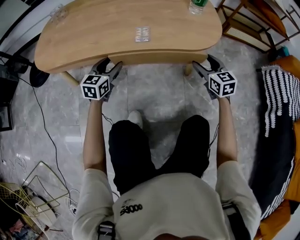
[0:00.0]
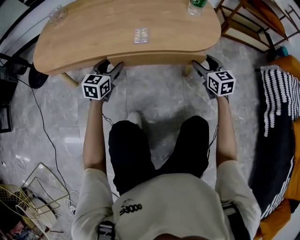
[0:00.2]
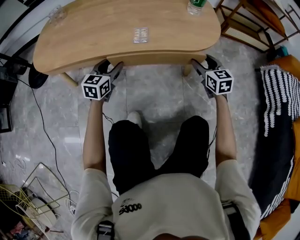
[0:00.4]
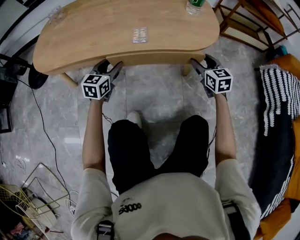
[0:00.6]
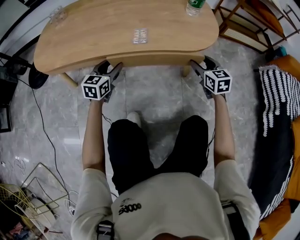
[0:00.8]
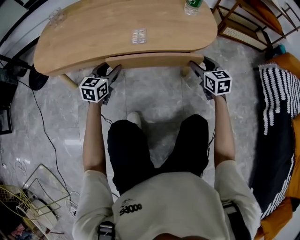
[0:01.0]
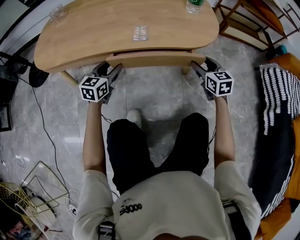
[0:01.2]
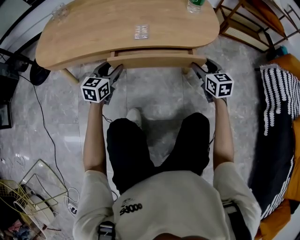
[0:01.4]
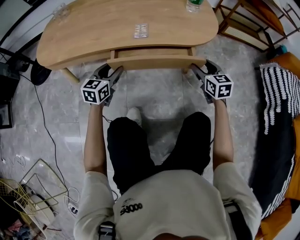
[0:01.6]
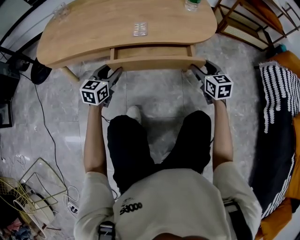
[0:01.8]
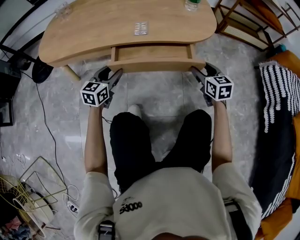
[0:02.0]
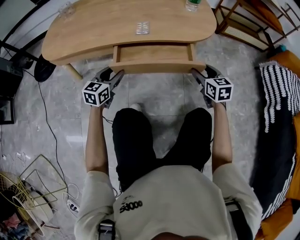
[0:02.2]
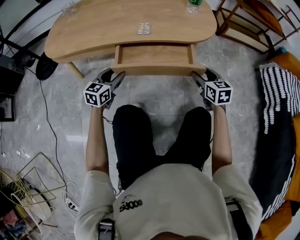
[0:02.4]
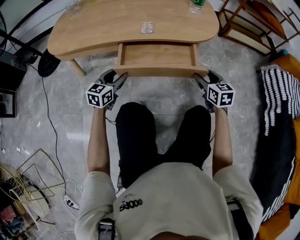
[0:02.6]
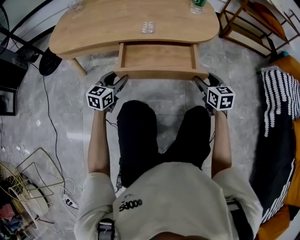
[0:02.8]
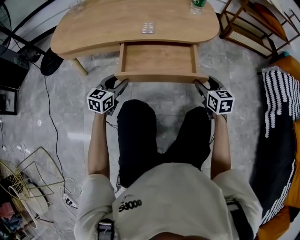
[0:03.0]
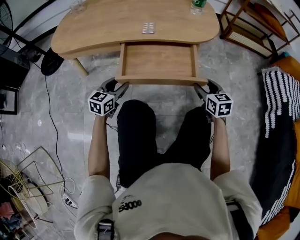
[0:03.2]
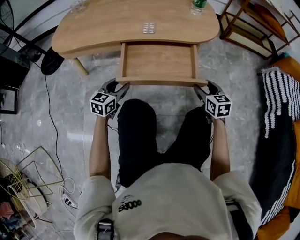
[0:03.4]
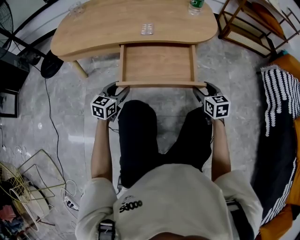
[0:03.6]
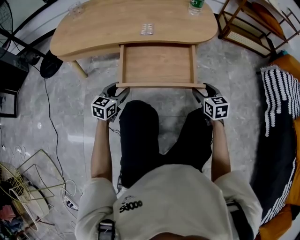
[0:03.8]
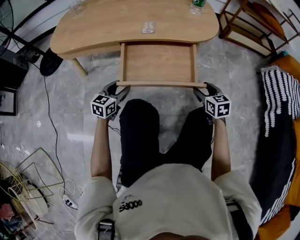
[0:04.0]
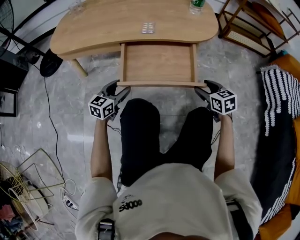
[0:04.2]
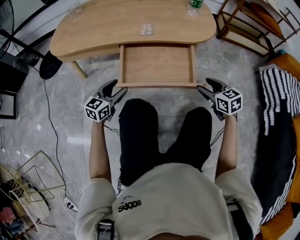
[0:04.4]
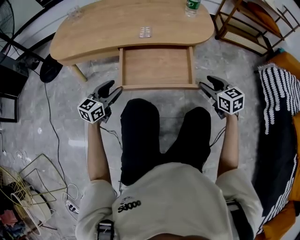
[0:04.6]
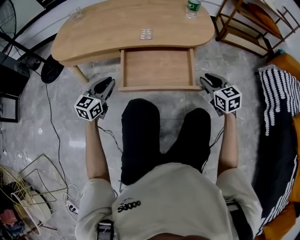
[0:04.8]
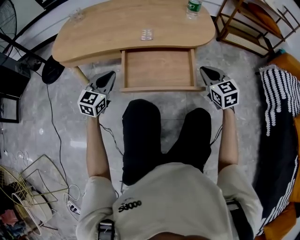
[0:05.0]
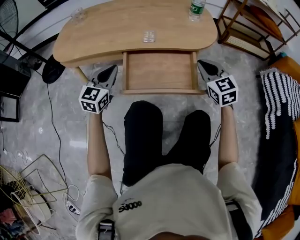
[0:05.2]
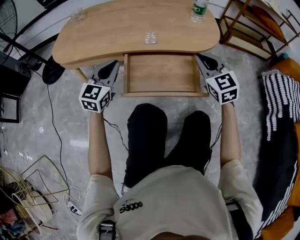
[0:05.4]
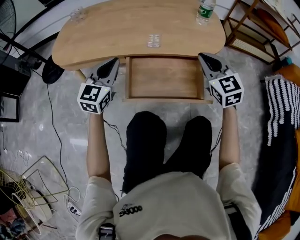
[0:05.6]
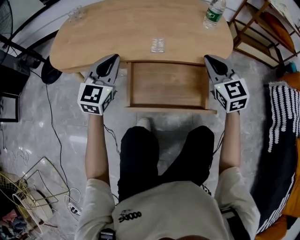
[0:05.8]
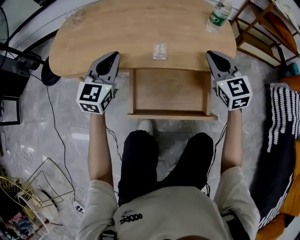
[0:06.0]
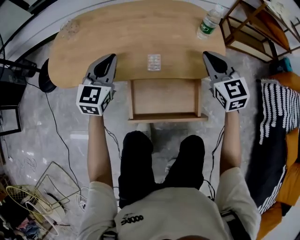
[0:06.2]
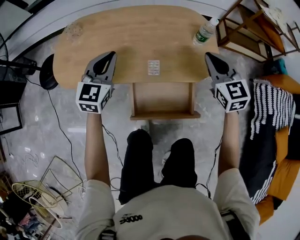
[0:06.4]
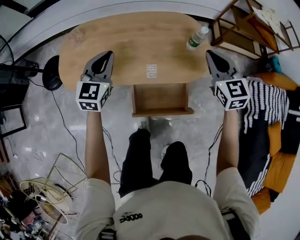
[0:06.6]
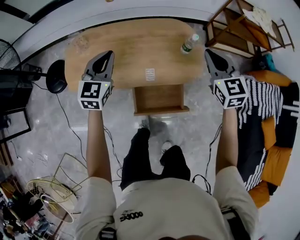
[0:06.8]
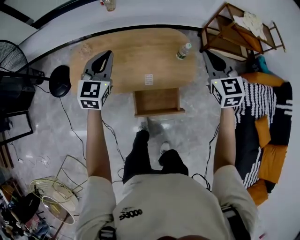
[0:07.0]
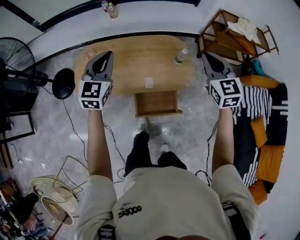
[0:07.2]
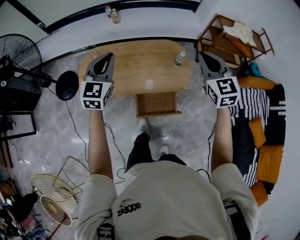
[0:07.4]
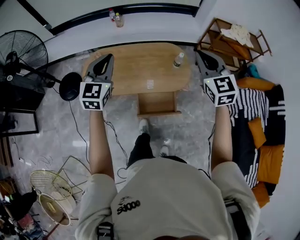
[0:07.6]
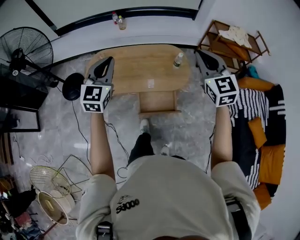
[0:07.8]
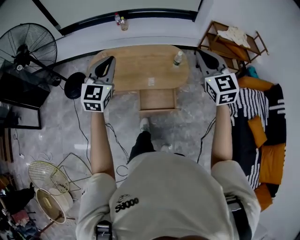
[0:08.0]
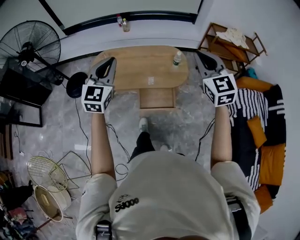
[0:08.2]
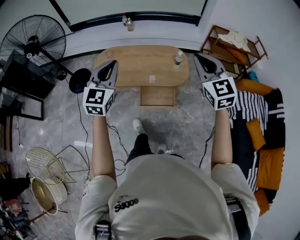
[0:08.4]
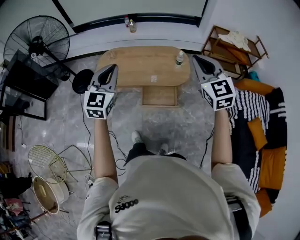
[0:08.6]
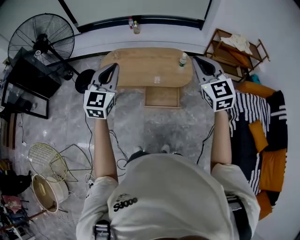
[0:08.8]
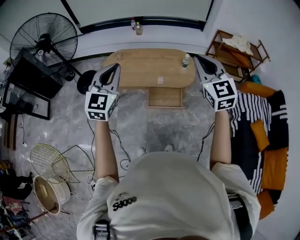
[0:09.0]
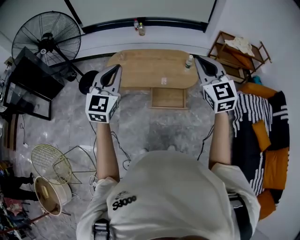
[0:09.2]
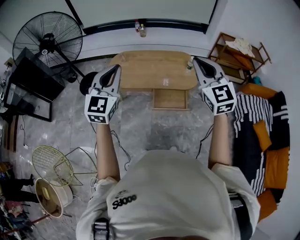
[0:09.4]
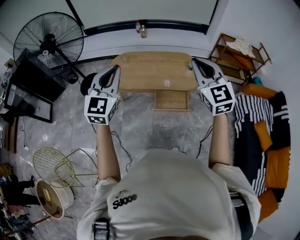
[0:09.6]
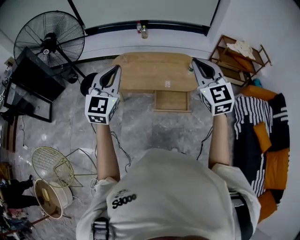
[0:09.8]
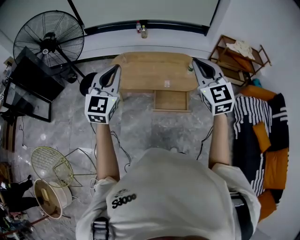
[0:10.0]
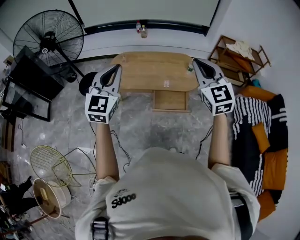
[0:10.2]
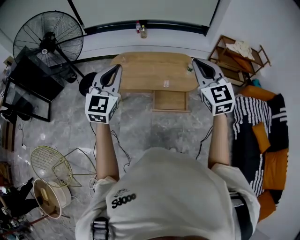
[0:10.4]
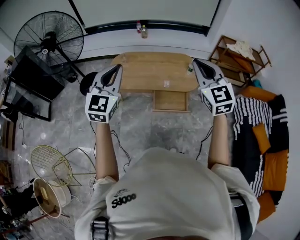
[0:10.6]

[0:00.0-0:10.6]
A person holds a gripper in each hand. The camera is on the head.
0:00.0 to 0:01.6: The grippers move only a little.
0:01.6 to 0:03.0: The grippers both shift backward by approximately 10 cm.
0:03.0 to 0:04.6: The grippers make only small movements.
0:04.6 to 0:06.0: The left gripper is displaced forward and upward by approximately 25 cm, rotates approximately 30 degrees, and closes its fingers. The right gripper travels forward, upward and to the left by some 25 cm, turns by approximately 30 degrees, and closes.
0:06.0 to 0:07.6: Both grippers move upward, some 60 cm.
0:07.6 to 0:09.0: The right gripper is displaced backward and upward by roughly 25 cm; the left gripper shifts about 30 cm backward.
0:09.0 to 0:10.6: The two grippers go some 5 cm to the left.

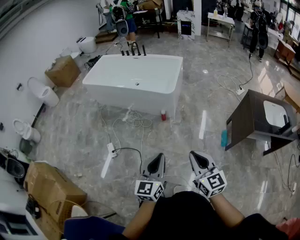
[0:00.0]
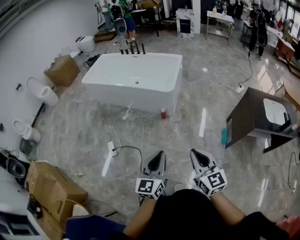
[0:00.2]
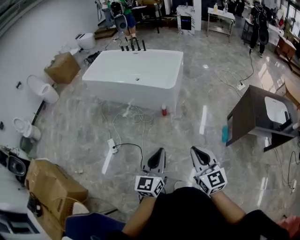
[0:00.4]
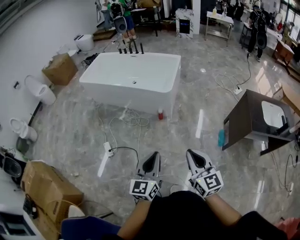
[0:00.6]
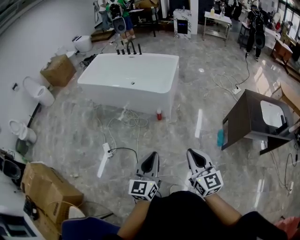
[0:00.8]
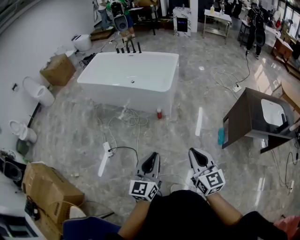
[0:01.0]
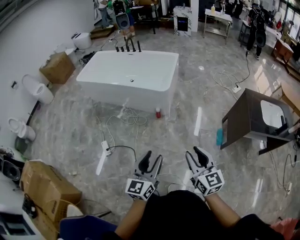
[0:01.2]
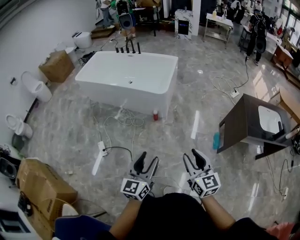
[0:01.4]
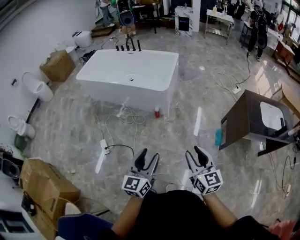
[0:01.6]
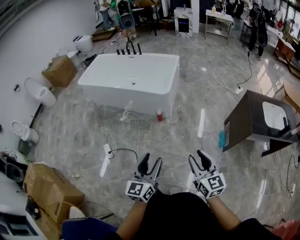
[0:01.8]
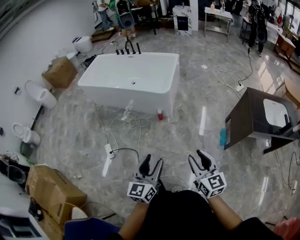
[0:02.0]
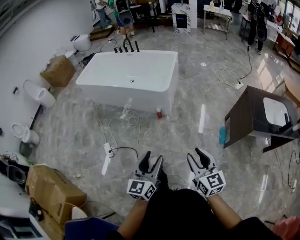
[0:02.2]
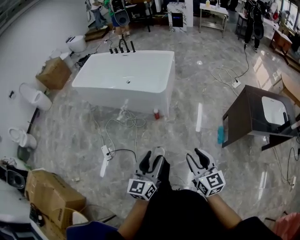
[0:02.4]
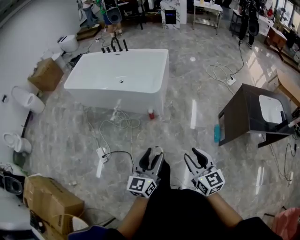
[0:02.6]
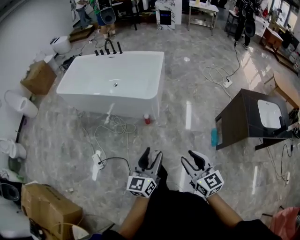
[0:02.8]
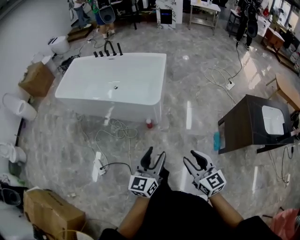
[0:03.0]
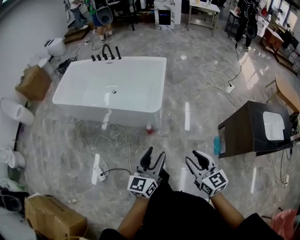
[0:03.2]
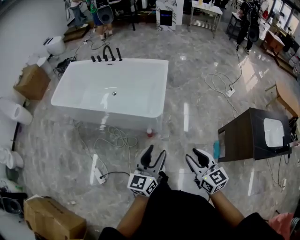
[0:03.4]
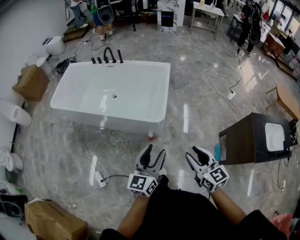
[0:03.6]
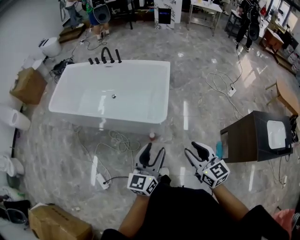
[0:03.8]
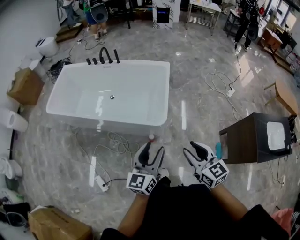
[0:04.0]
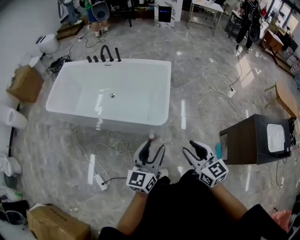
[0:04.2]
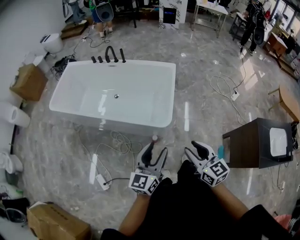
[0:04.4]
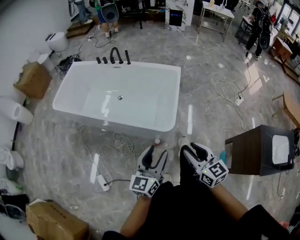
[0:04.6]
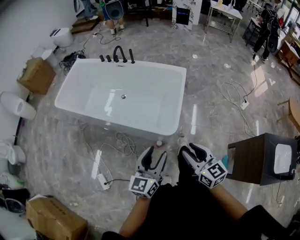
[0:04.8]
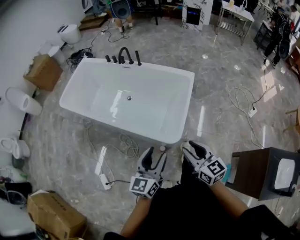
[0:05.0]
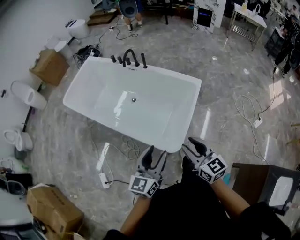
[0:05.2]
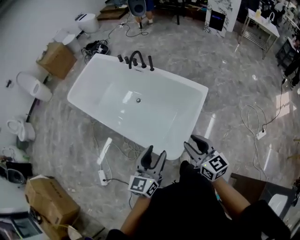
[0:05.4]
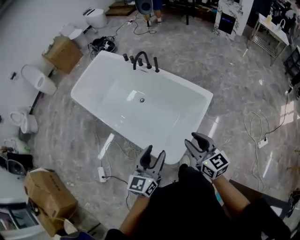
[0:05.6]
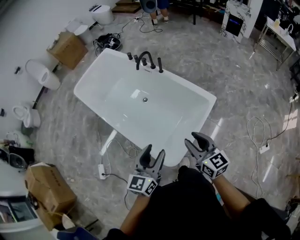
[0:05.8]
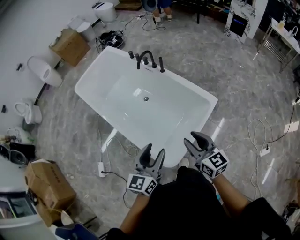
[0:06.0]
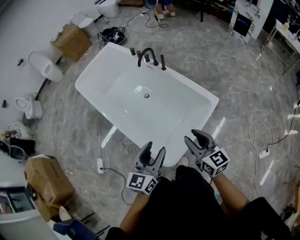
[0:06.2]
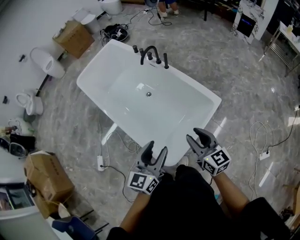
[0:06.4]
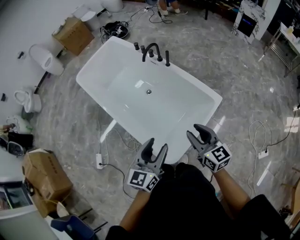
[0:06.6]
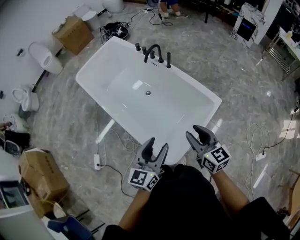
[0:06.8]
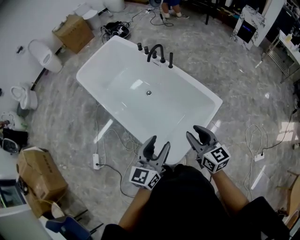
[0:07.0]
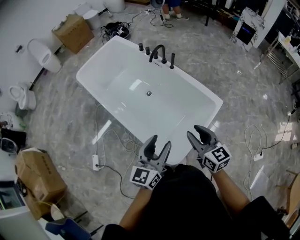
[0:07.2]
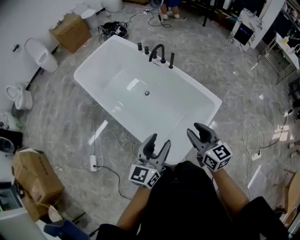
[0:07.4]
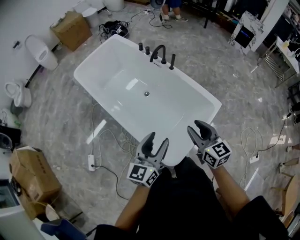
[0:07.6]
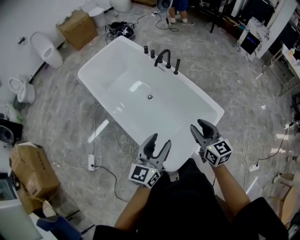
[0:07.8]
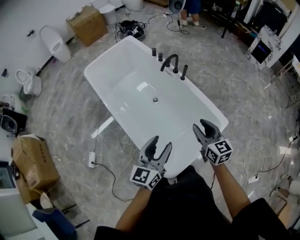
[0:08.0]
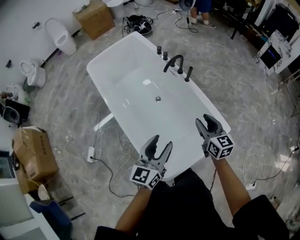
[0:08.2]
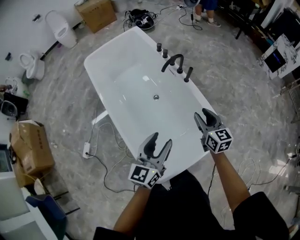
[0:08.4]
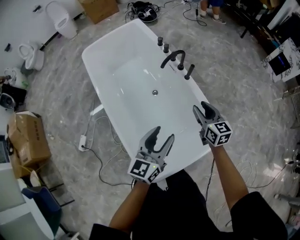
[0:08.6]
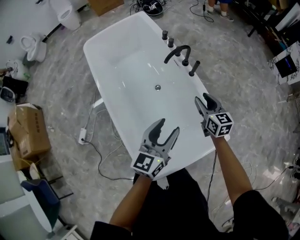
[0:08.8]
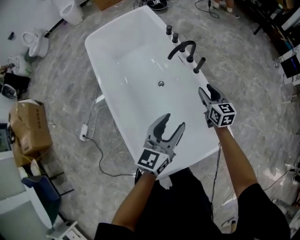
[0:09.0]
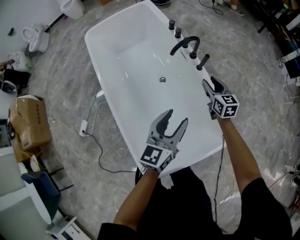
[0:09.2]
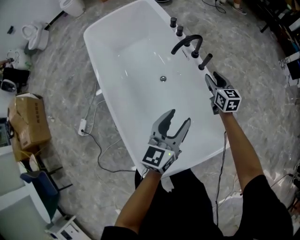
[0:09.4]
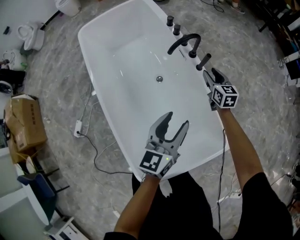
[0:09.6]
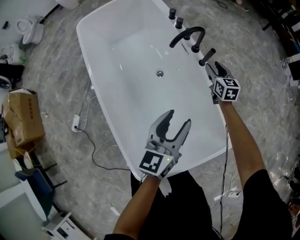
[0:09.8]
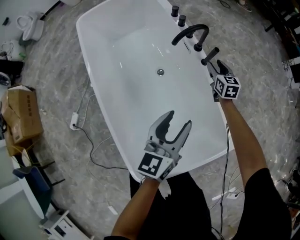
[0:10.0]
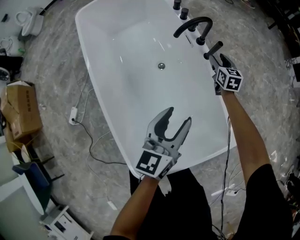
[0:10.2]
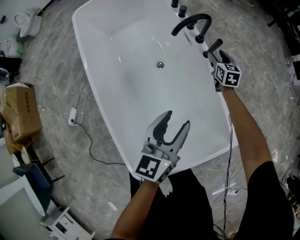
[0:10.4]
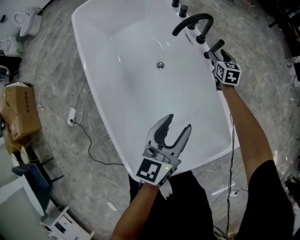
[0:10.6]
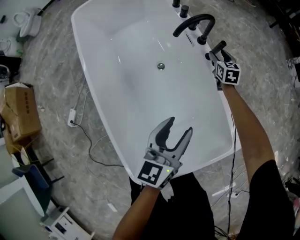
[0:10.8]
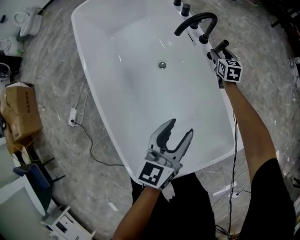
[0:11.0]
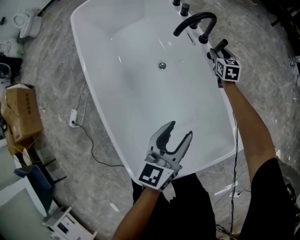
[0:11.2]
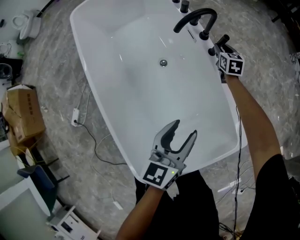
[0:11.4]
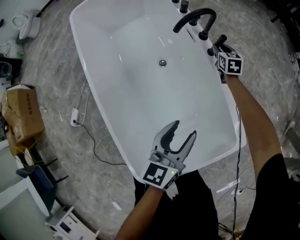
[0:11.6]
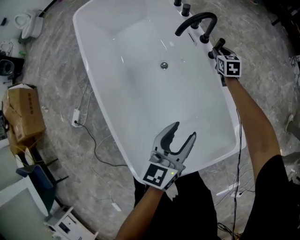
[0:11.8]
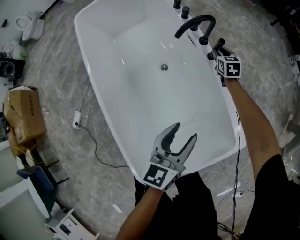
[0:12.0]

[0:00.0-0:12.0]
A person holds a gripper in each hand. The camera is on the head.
0:00.0 to 0:01.6: The left gripper opens its fingers. The right gripper heads to the right, covering approximately 5 cm, and opens its fingers.
0:01.6 to 0:03.0: The two grippers go about 25 cm forward.
0:03.0 to 0:04.4: Both grippers move forward, some 30 cm.
0:04.4 to 0:06.0: The left gripper moves approximately 35 cm, and changes its angle by roughly 30 degrees; the right gripper ends up some 50 cm from where it was, and swivels approximately 30 degrees.
0:06.0 to 0:07.6: The left gripper goes about 10 cm to the left. The right gripper shifts about 10 cm to the left and forward.
0:07.6 to 0:09.0: The left gripper goes about 30 cm forward and to the right. The right gripper heads forward and downward, covering roughly 40 cm.
0:09.0 to 0:10.4: The left gripper heads downward, covering approximately 10 cm. Meanwhile the right gripper moves downward and forward, some 25 cm.
0:10.4 to 0:12.0: The right gripper closes.

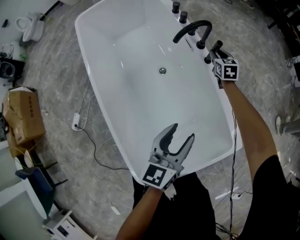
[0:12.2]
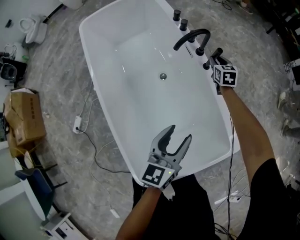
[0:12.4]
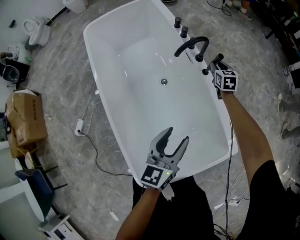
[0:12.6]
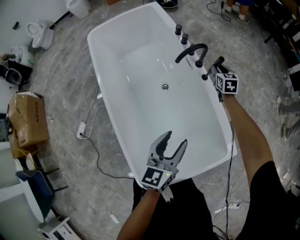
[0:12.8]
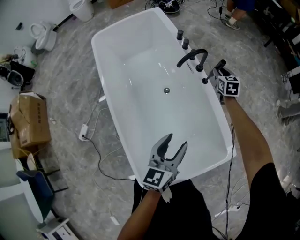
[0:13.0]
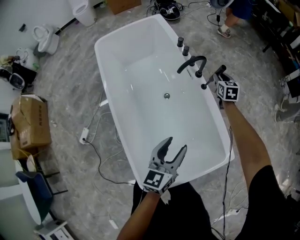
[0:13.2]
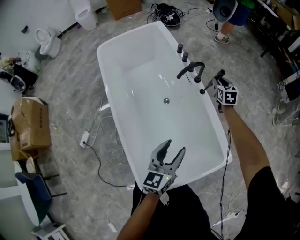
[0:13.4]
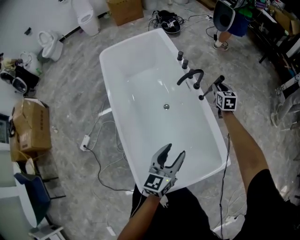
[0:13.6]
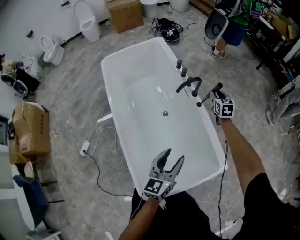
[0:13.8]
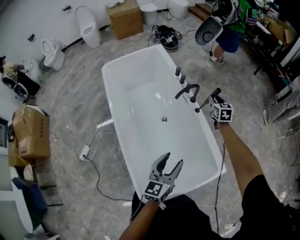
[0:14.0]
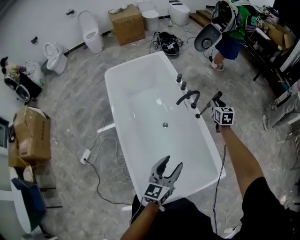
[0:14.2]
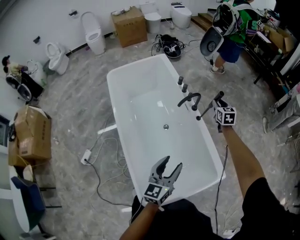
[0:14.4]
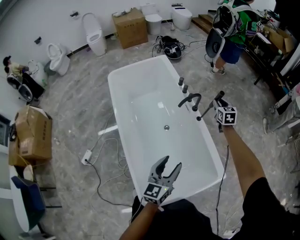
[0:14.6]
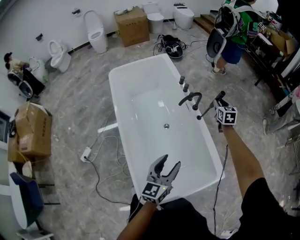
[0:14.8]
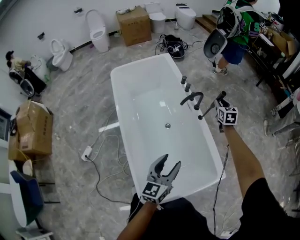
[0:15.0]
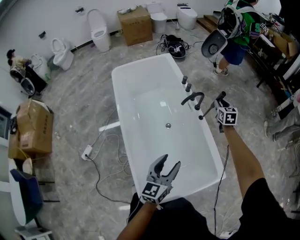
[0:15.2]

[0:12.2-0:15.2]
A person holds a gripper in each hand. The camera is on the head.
0:12.2 to 0:13.8: The left gripper is displaced upward by some 15 cm. Meanwhile the right gripper is displaced upward by about 20 cm.
0:13.8 to 0:15.2: The right gripper is displaced upward by approximately 10 cm; the left gripper shifts by roughly 5 cm.
